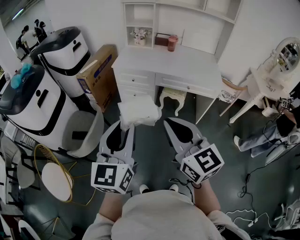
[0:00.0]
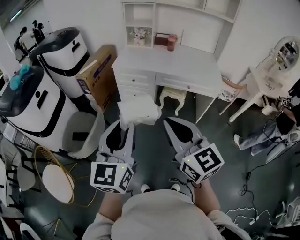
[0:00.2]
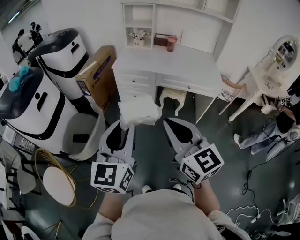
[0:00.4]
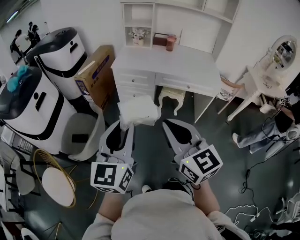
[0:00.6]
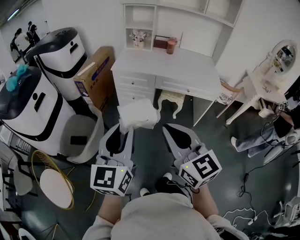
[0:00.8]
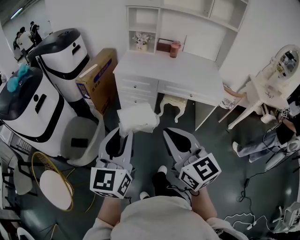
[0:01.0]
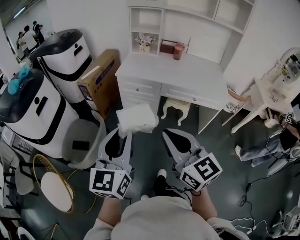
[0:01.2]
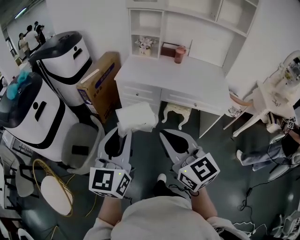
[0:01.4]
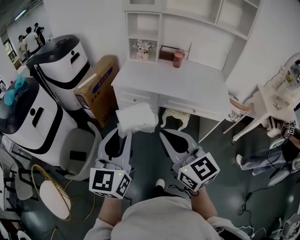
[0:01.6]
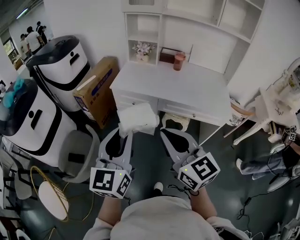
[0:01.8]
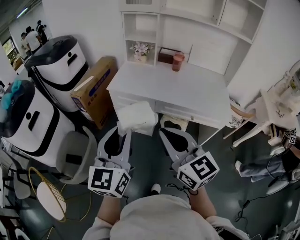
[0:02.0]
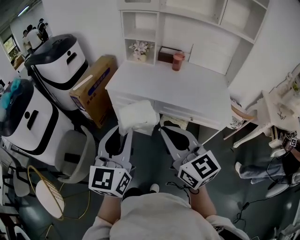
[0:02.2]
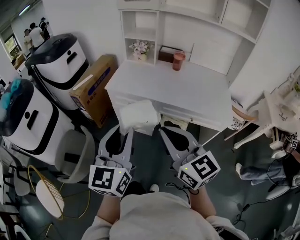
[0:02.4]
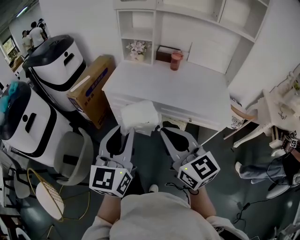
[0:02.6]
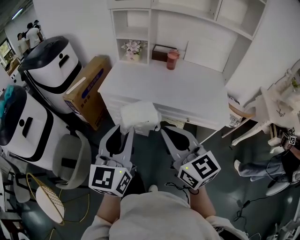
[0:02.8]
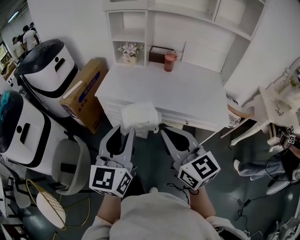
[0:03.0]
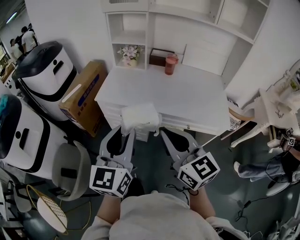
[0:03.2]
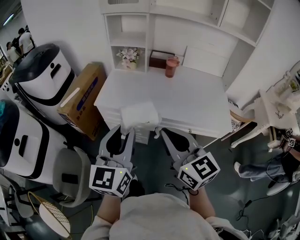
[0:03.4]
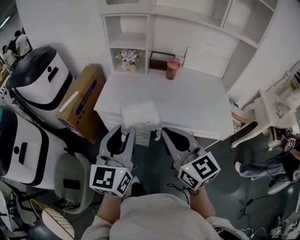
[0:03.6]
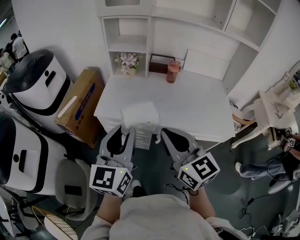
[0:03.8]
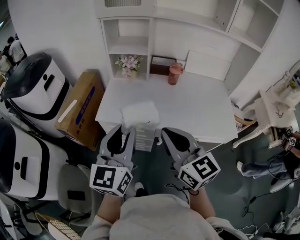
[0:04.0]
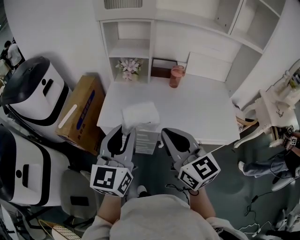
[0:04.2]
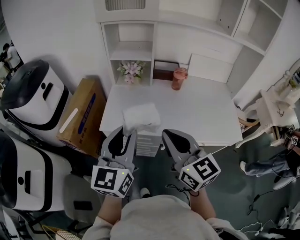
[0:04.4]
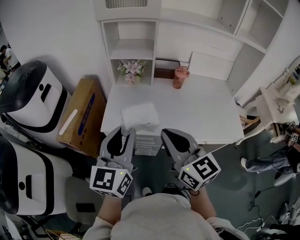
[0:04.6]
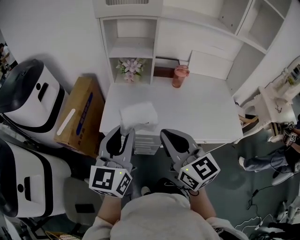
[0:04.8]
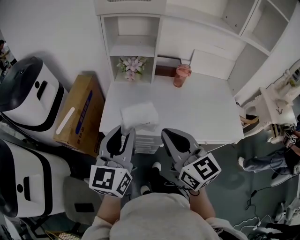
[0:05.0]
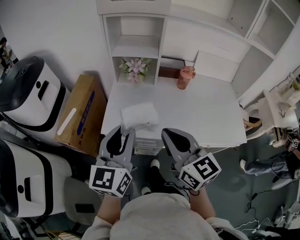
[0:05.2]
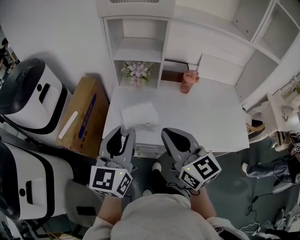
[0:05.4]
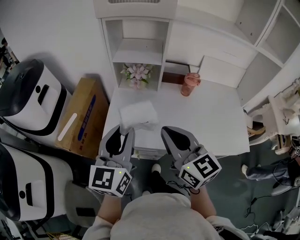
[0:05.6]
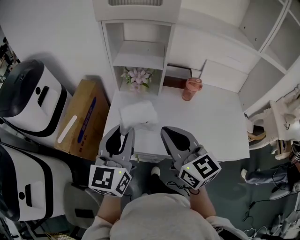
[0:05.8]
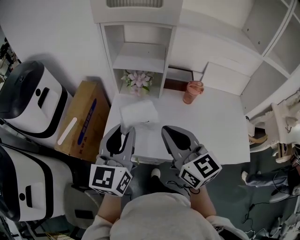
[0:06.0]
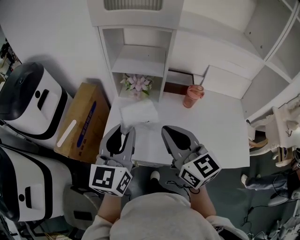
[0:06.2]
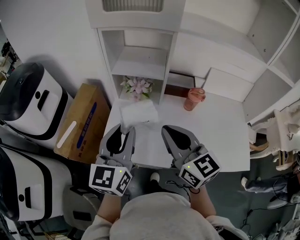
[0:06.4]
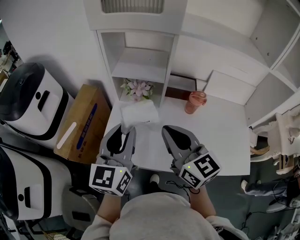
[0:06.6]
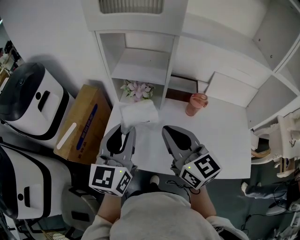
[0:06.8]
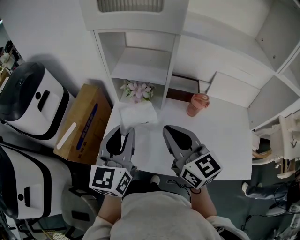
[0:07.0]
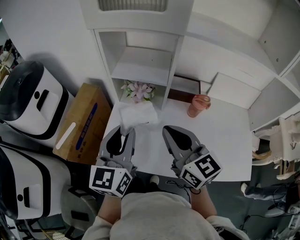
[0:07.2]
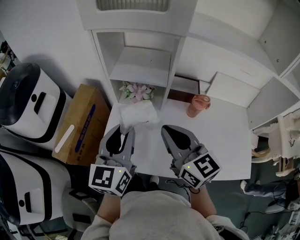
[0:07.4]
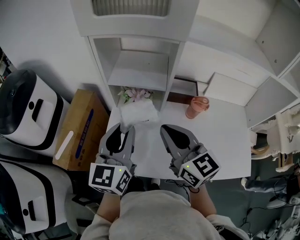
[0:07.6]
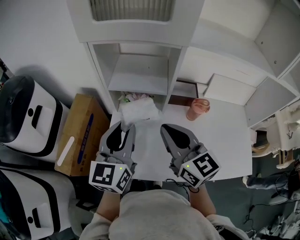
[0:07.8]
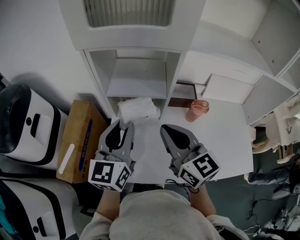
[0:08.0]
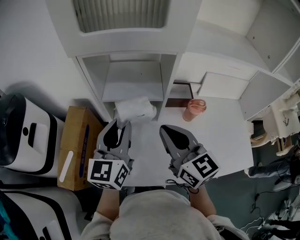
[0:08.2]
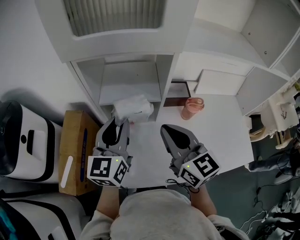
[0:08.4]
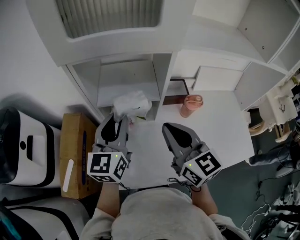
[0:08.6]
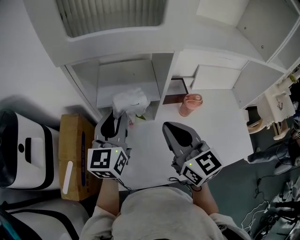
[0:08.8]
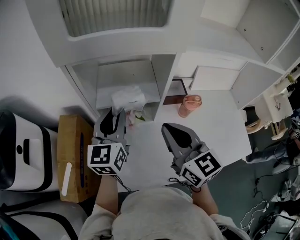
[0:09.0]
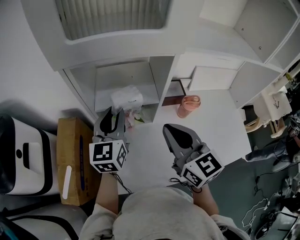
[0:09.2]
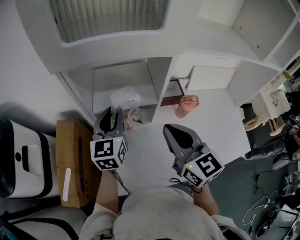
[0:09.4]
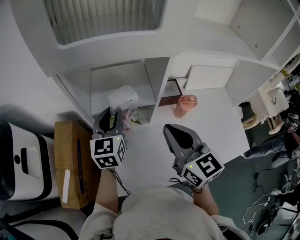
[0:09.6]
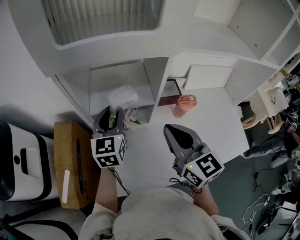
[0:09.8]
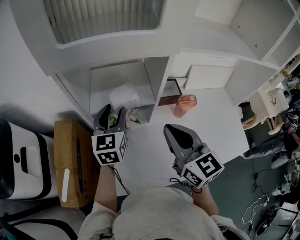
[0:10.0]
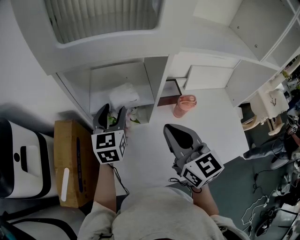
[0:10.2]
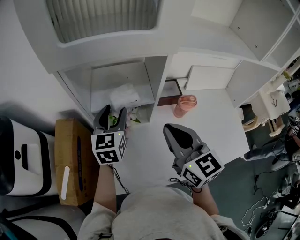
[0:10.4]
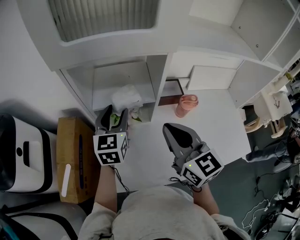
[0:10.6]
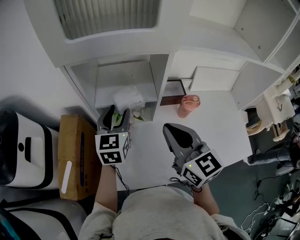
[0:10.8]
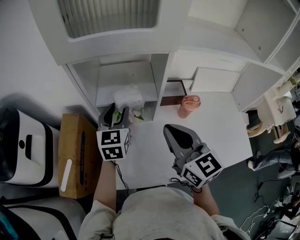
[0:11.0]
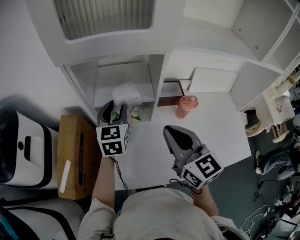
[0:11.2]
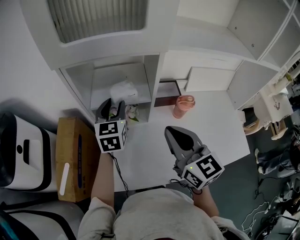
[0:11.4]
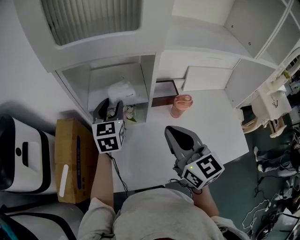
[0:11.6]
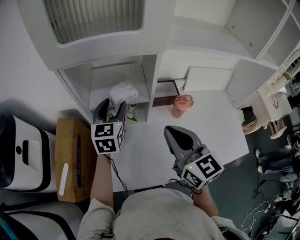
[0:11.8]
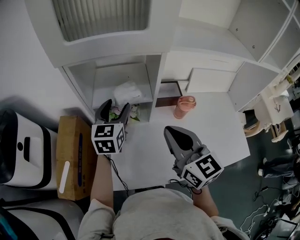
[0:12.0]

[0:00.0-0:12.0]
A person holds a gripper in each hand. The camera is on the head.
0:00.0 to 0:01.6: Both grippers travel together forward, about 15 cm.
0:01.6 to 0:03.0: Both grippers move forward and to the right, about 20 cm.
0:03.0 to 0:04.4: The right gripper heads forward and to the left, covering some 25 cm. The left gripper heads forward, covering approximately 25 cm.
0:04.4 to 0:06.0: The grippers both shift forward by approximately 20 cm.
0:06.0 to 0:07.6: Both grippers move forward, approximately 15 cm.
0:07.6 to 0:09.0: The left gripper heads forward, covering about 15 cm, while the right gripper shifts roughly 5 cm forward.
0:09.0 to 0:10.4: The left gripper moves approximately 5 cm, and opens.
0:10.4 to 0:12.0: The grippers move only a little.

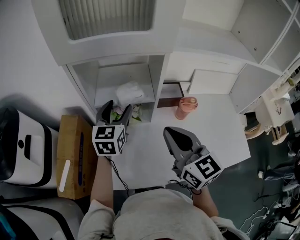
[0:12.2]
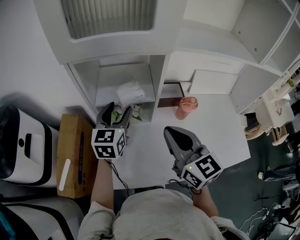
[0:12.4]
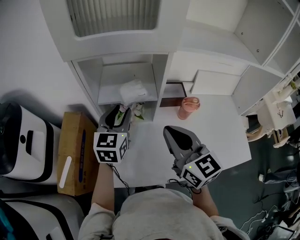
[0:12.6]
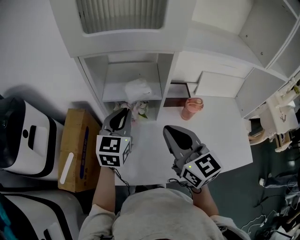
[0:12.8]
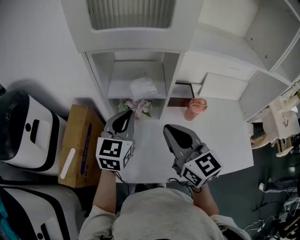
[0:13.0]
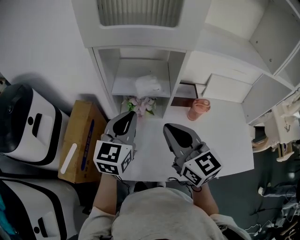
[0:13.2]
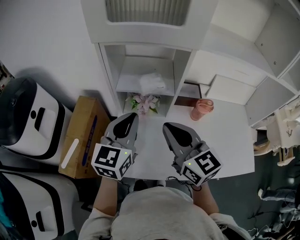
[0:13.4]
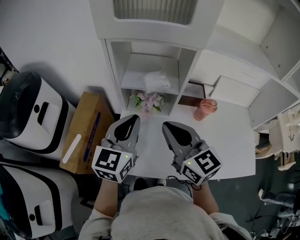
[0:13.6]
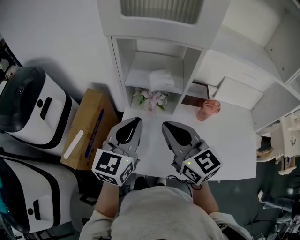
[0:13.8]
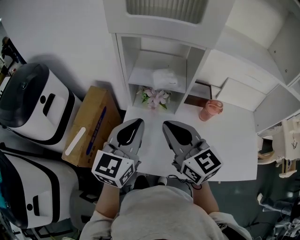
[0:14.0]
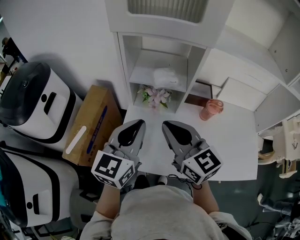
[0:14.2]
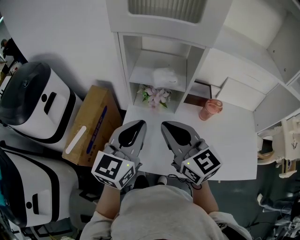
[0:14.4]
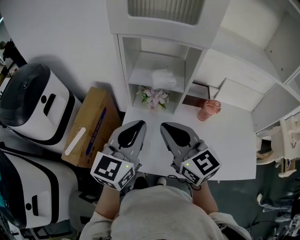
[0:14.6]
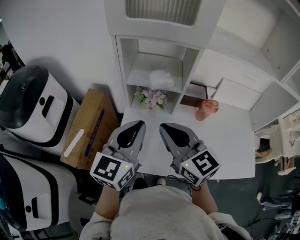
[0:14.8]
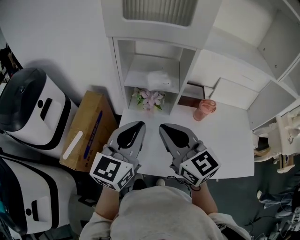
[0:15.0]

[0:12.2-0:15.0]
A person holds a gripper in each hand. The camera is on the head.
0:12.2 to 0:13.6: The left gripper is displaced backward by some 15 cm, and closes. The right gripper goes some 5 cm to the left.
0:13.6 to 0:15.0: The left gripper heads backward, covering about 5 cm.

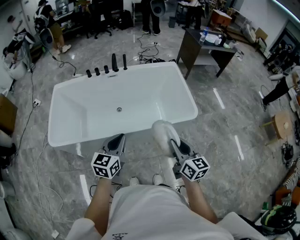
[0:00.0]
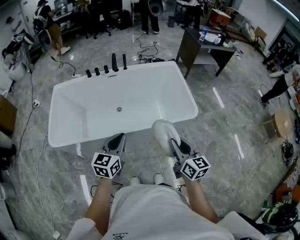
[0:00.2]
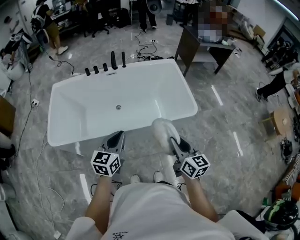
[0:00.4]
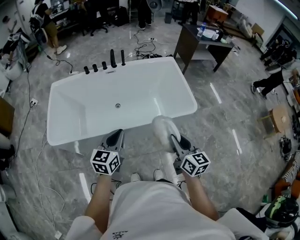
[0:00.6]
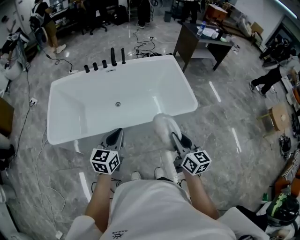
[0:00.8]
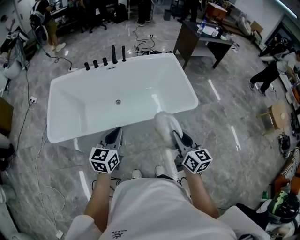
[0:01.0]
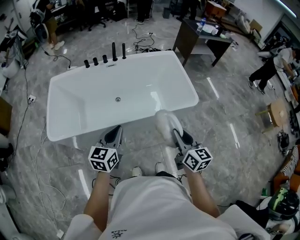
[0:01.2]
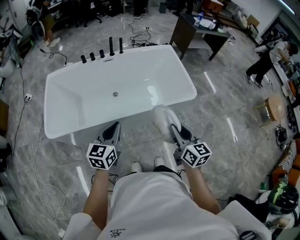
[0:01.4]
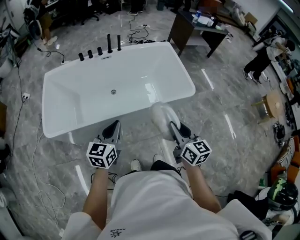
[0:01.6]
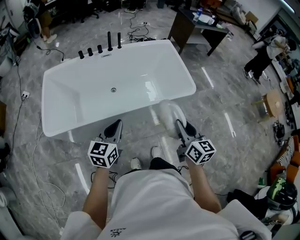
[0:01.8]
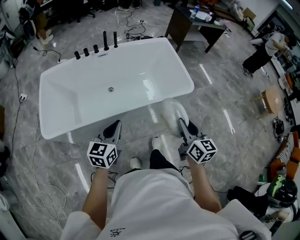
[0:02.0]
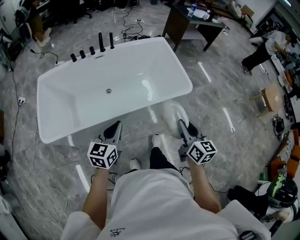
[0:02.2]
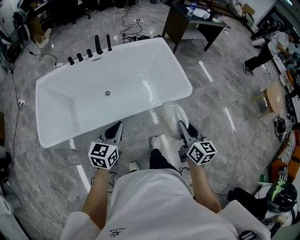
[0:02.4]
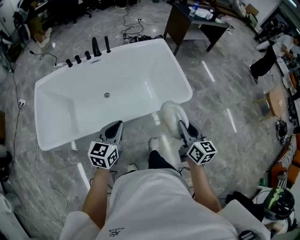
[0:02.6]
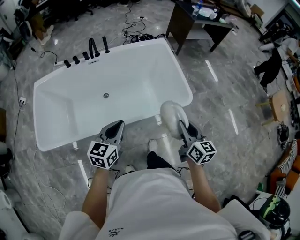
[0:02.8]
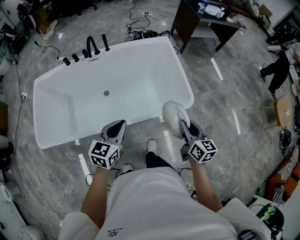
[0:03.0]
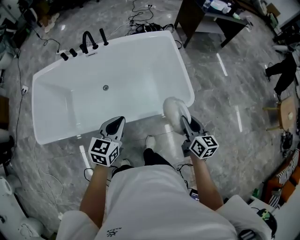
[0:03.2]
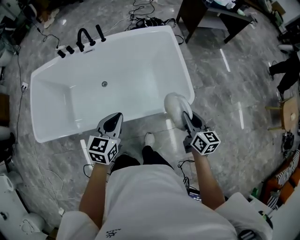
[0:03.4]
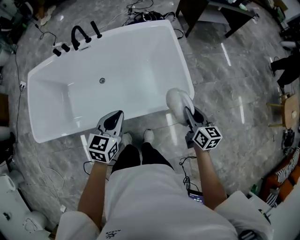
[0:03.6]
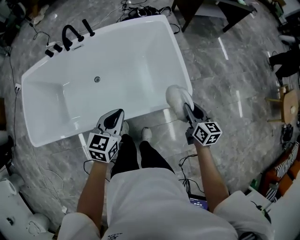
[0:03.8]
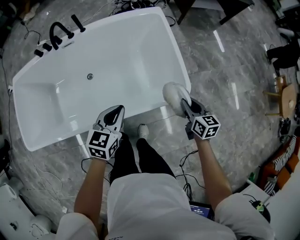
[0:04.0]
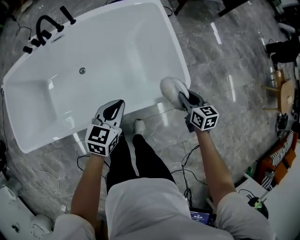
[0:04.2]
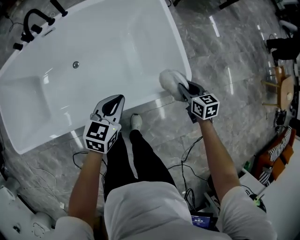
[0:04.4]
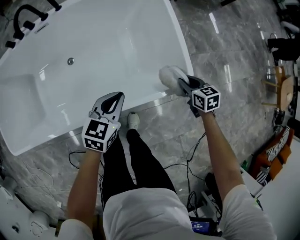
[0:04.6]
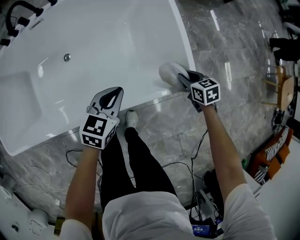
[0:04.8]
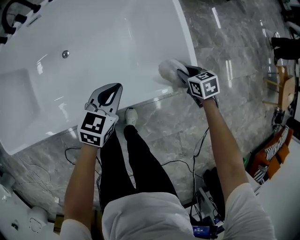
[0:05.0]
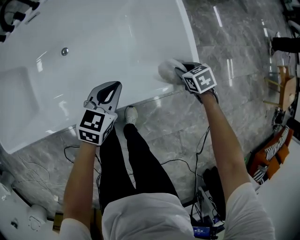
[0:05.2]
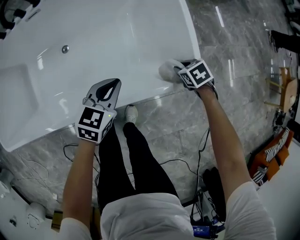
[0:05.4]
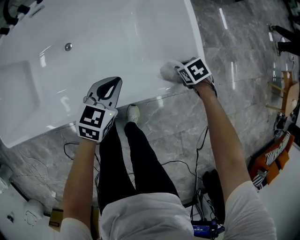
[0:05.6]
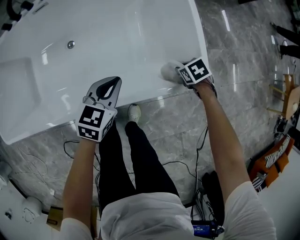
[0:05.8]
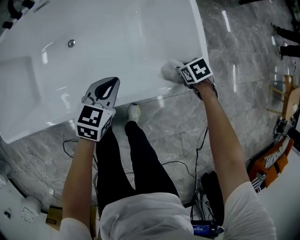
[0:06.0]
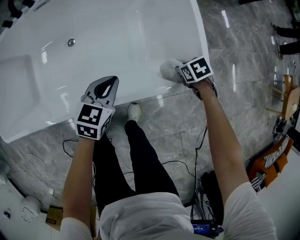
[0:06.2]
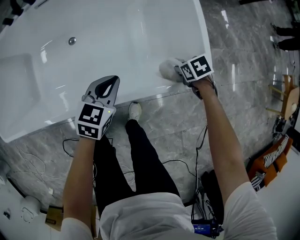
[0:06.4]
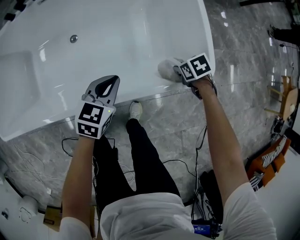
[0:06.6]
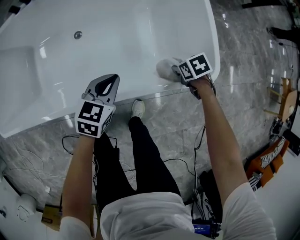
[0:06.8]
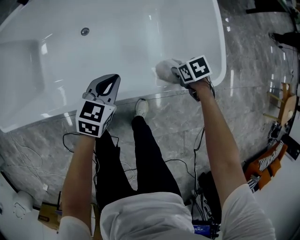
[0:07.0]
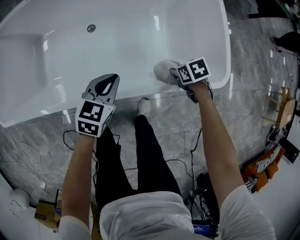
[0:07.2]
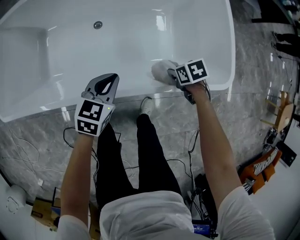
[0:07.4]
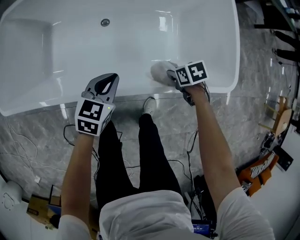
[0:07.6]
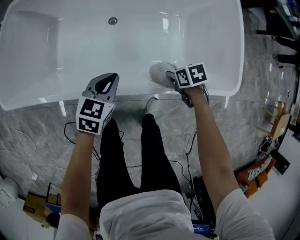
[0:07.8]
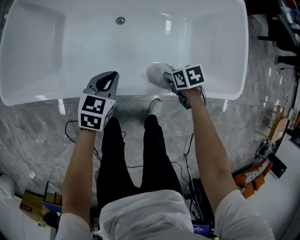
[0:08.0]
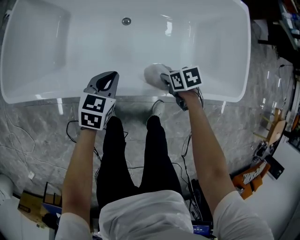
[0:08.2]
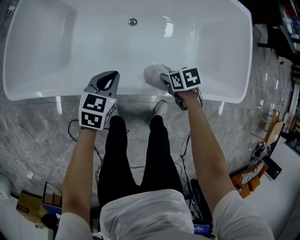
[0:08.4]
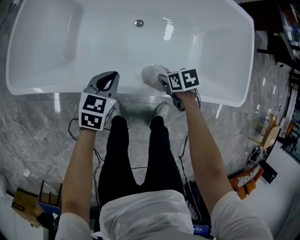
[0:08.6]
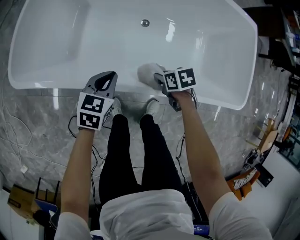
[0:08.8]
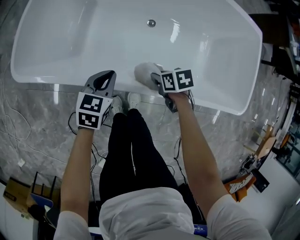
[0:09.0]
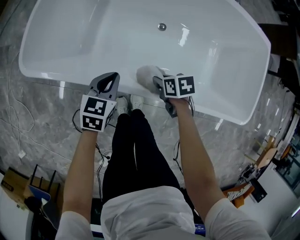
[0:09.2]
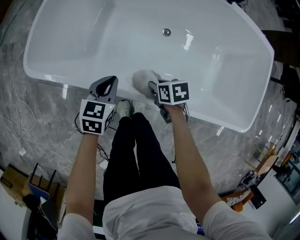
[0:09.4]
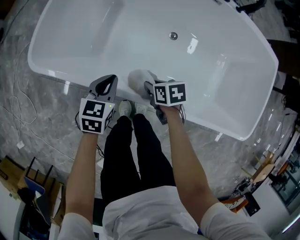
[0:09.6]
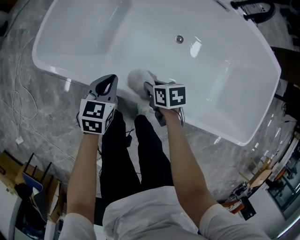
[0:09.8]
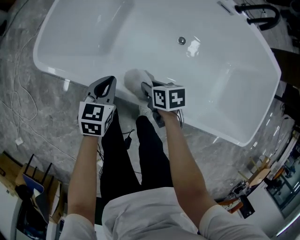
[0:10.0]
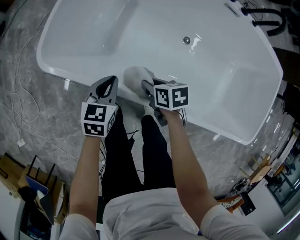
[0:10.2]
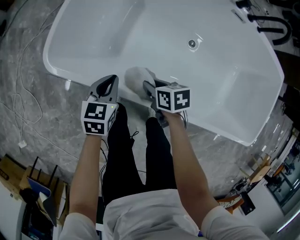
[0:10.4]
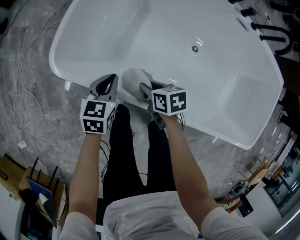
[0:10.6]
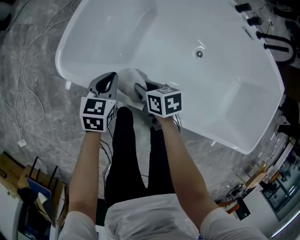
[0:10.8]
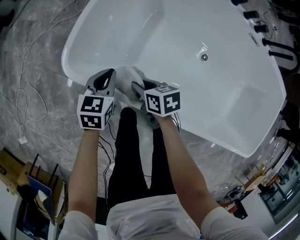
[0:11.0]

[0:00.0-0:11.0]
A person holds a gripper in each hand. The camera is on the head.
0:00.0 to 0:01.6: The left gripper moves about 10 cm.
0:01.6 to 0:03.2: The left gripper shifts by approximately 30 cm.
0:03.2 to 0:04.8: The left gripper travels downward by roughly 25 cm.
0:04.8 to 0:06.2: The left gripper moves downward, approximately 5 cm.
0:06.2 to 0:07.8: The left gripper moves approximately 30 cm.
0:07.8 to 0:09.4: The left gripper moves approximately 30 cm, and turns by approximately 20 degrees.
0:09.4 to 0:11.0: The left gripper changes place by about 30 cm.
